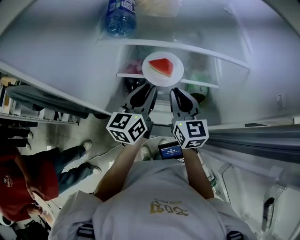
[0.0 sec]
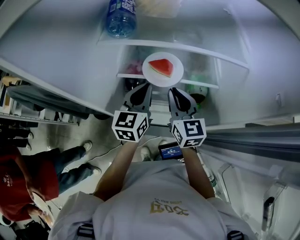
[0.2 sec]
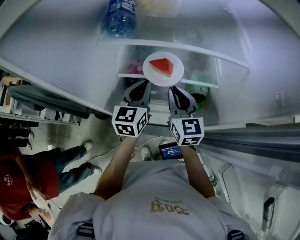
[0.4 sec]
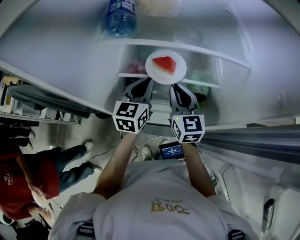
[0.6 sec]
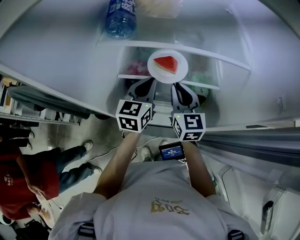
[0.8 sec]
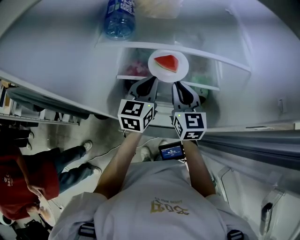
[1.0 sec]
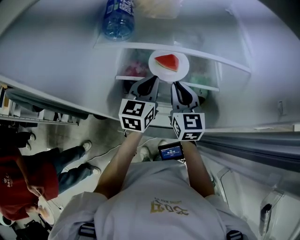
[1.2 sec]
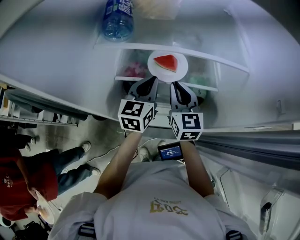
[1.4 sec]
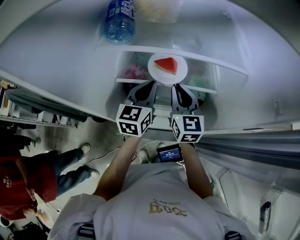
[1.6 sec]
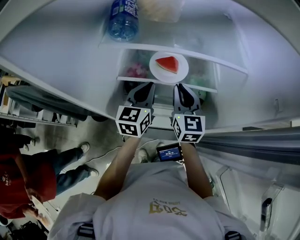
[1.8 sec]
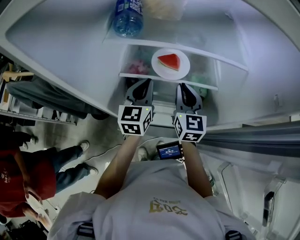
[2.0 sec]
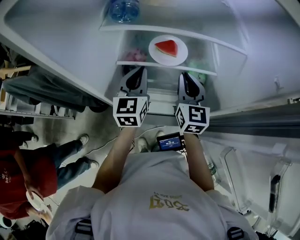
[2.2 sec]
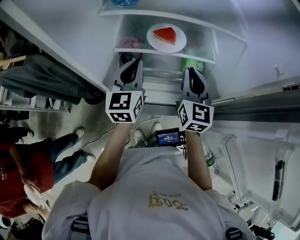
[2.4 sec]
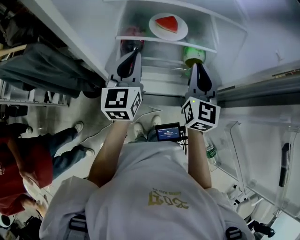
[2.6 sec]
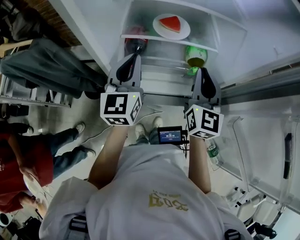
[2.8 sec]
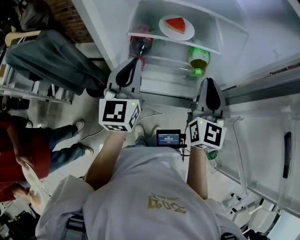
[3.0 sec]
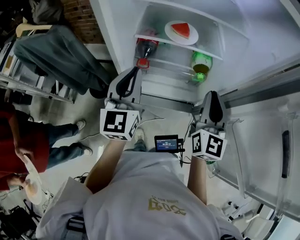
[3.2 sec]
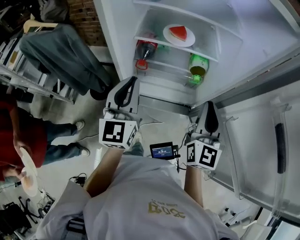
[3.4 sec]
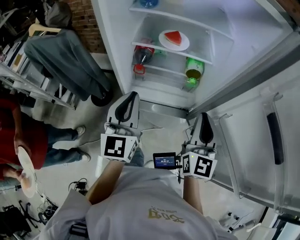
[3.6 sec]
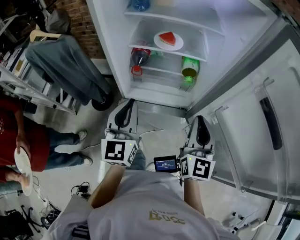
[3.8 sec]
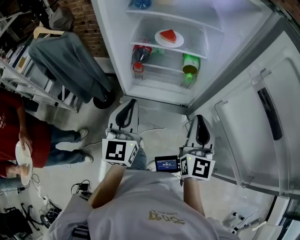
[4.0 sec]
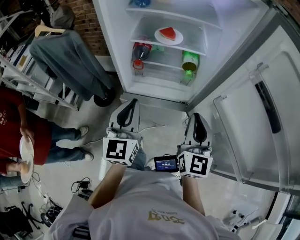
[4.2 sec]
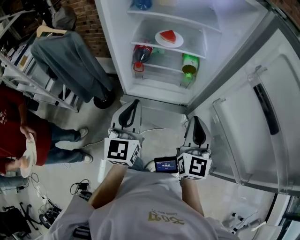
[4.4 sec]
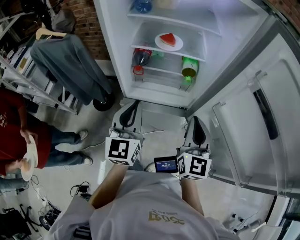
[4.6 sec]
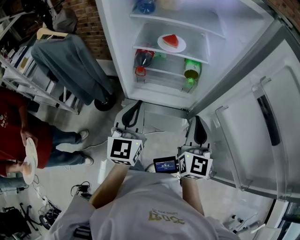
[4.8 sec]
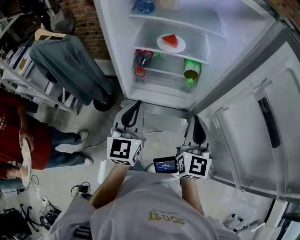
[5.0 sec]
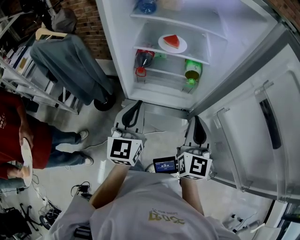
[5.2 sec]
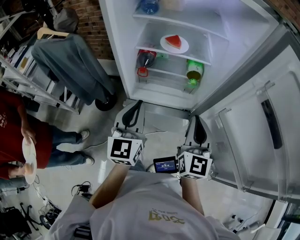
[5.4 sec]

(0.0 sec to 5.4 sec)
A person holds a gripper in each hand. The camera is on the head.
0.0 sec - 1.4 sec: The left gripper travels forward by roughly 5 cm, and closes its fingers.
1.4 sec - 2.8 sec: The left gripper is displaced backward and to the left by about 15 cm, while the right gripper travels backward, to the right and upward by roughly 15 cm.
2.8 sec - 4.0 sec: The grippers both shift backward by approximately 20 cm.
4.0 sec - 5.4 sec: The grippers move only a little.

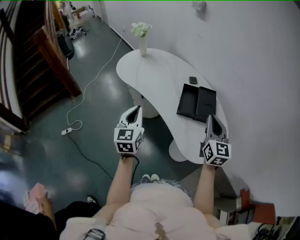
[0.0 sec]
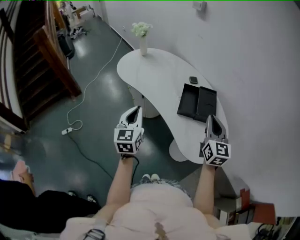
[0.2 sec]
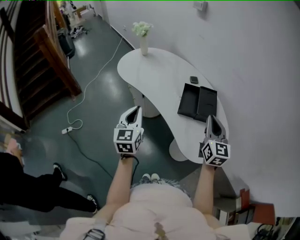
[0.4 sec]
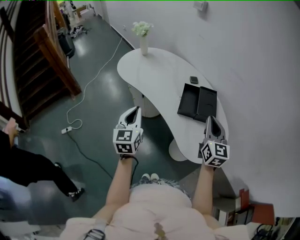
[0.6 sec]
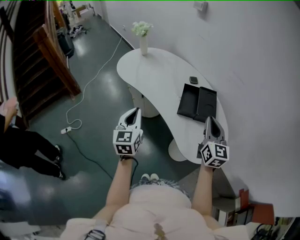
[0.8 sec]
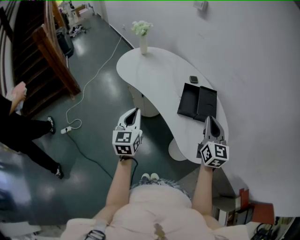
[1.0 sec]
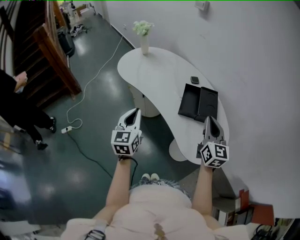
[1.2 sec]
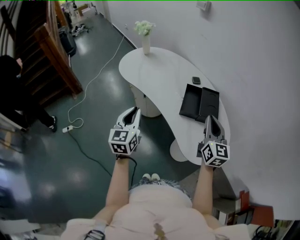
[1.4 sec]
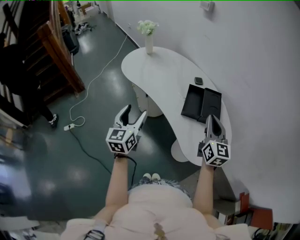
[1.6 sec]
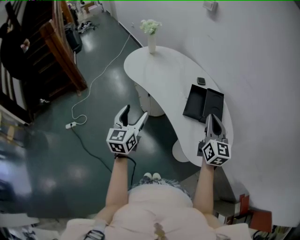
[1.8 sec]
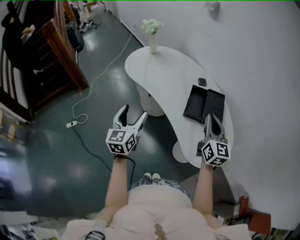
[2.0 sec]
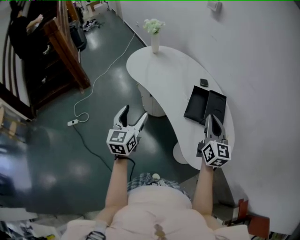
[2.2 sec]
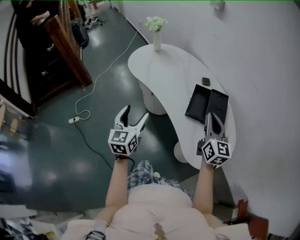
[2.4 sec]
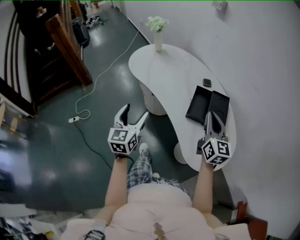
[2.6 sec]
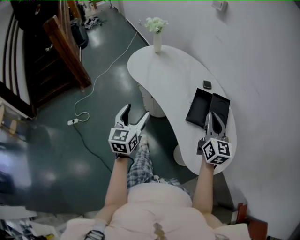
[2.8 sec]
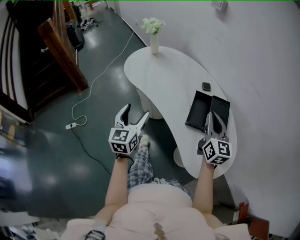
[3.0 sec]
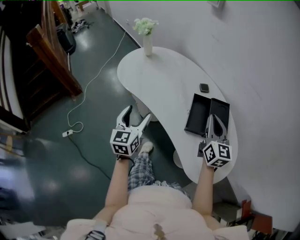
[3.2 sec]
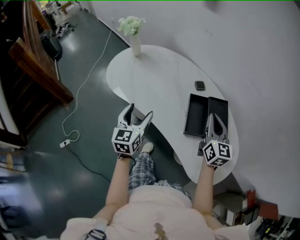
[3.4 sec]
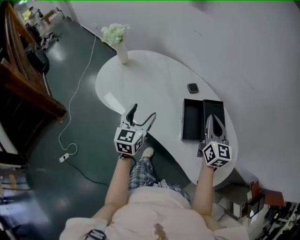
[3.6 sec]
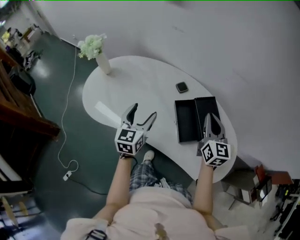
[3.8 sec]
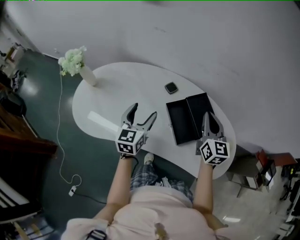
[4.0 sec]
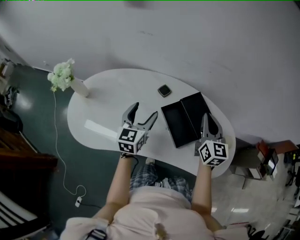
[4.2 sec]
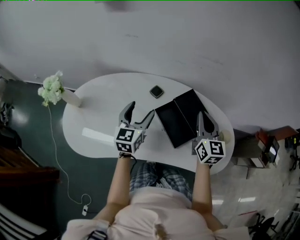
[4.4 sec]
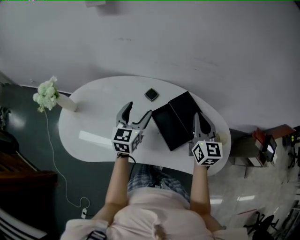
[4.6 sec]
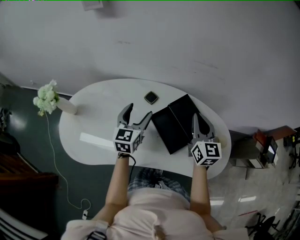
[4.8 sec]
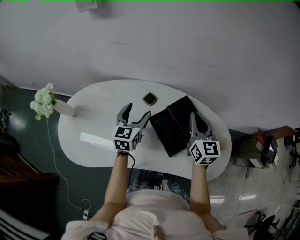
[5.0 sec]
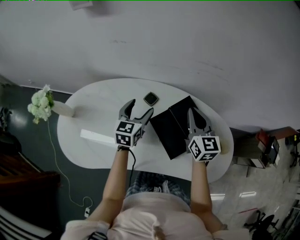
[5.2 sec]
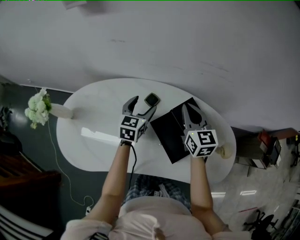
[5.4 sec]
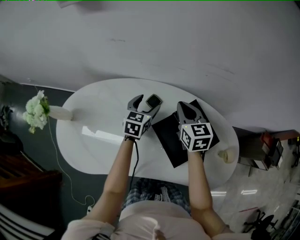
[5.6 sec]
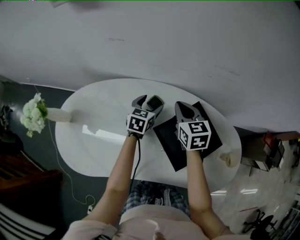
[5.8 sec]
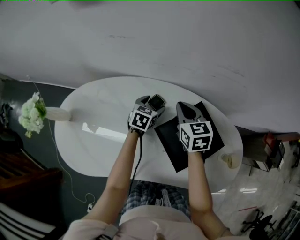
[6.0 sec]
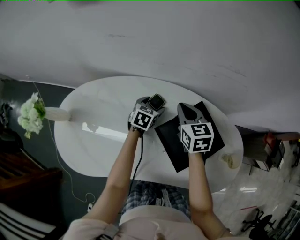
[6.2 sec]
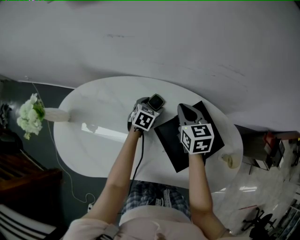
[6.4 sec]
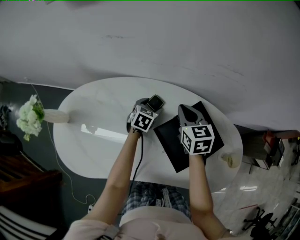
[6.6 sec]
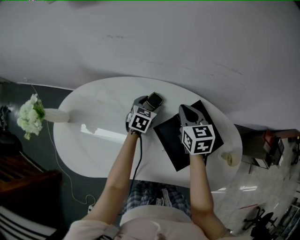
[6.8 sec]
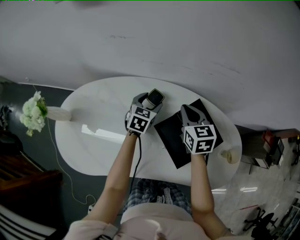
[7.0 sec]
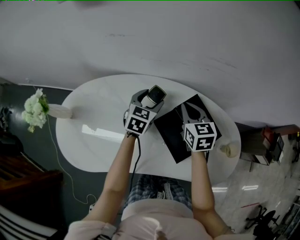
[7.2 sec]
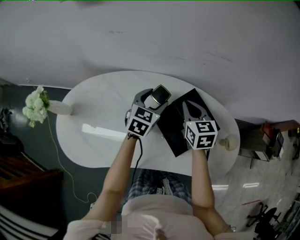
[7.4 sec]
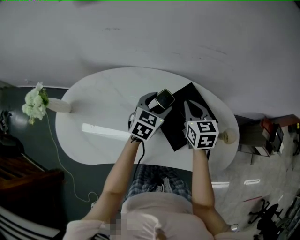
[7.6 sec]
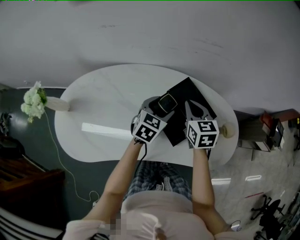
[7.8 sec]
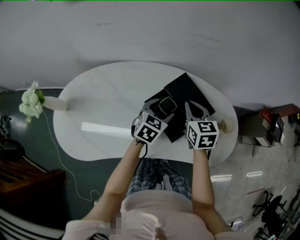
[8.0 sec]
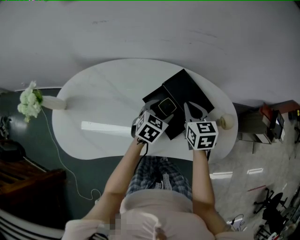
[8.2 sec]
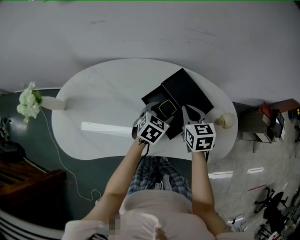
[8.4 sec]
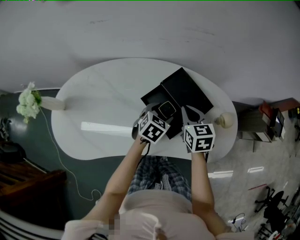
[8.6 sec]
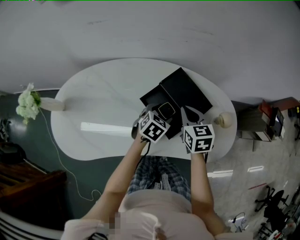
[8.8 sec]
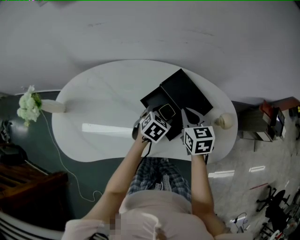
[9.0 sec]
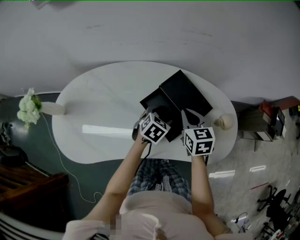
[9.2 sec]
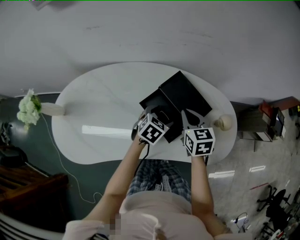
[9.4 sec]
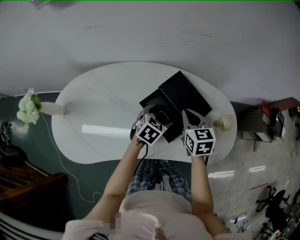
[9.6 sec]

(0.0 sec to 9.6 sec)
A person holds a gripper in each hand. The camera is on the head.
0.0 sec - 1.6 sec: The left gripper opens its fingers.
1.6 sec - 3.2 sec: The grippers both shift forward by approximately 15 cm.
3.2 sec - 4.8 sec: The left gripper moves roughly 35 cm, and swivels about 50 degrees. The right gripper moves roughly 15 cm, and turns by some 40 degrees.
4.8 sec - 6.4 sec: The right gripper heads forward, downward and to the left, covering approximately 20 cm, and changes its angle by about 30 degrees. The left gripper goes approximately 25 cm downward and forward, and tilts its fingers roughly 30 degrees downward.
6.4 sec - 8.0 sec: The left gripper travels backward, to the right and upward by approximately 20 cm. Meanwhile the right gripper heads backward and to the right, covering about 15 cm.
8.0 sec - 9.6 sec: The left gripper ends up some 5 cm from where it was.

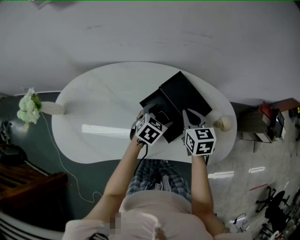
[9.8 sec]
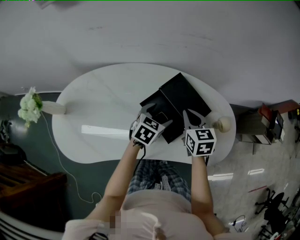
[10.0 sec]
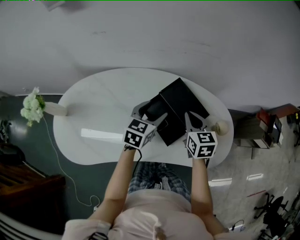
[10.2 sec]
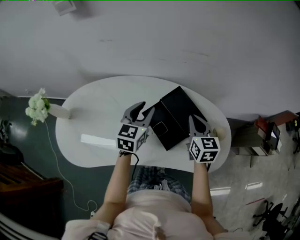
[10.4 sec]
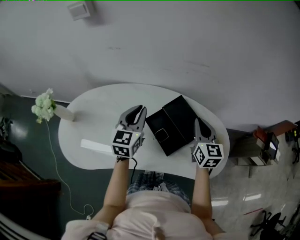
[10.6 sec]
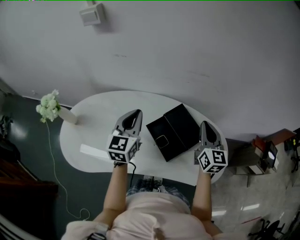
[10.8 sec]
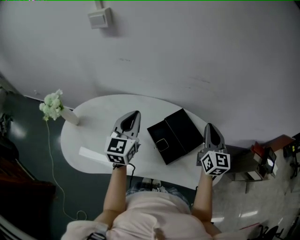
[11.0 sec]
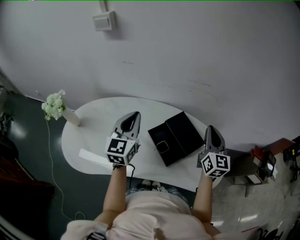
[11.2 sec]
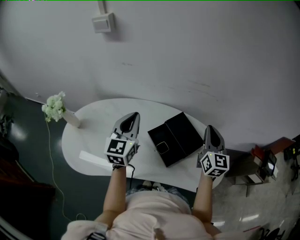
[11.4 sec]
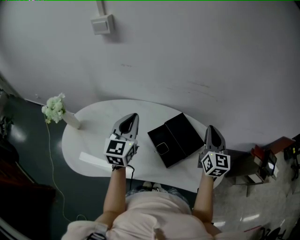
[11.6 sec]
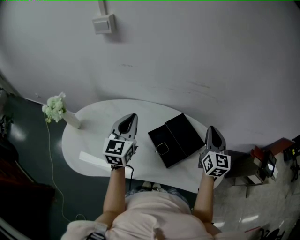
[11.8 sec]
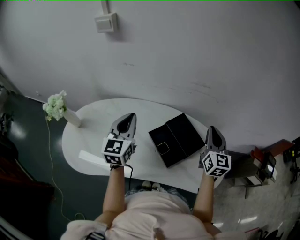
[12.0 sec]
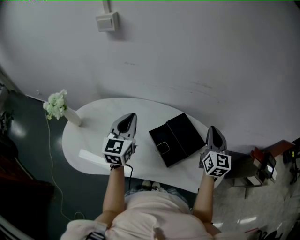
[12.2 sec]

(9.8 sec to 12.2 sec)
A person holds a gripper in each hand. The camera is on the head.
9.8 sec - 11.0 sec: The left gripper is displaced upward and to the left by roughly 30 cm, angles its fingers upward, by about 40 degrees, and closes up; the right gripper goes approximately 20 cm upward and to the right, and tilts its fingers some 30 degrees upward.
11.0 sec - 12.2 sec: The grippers make only small movements.

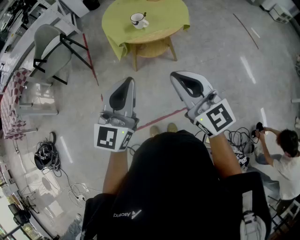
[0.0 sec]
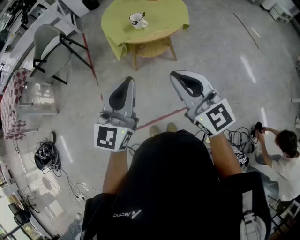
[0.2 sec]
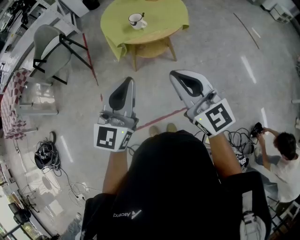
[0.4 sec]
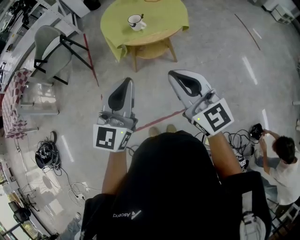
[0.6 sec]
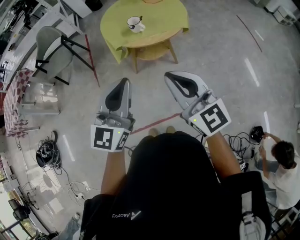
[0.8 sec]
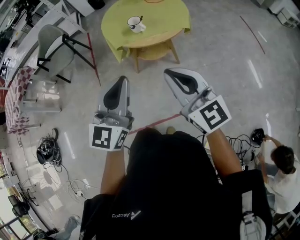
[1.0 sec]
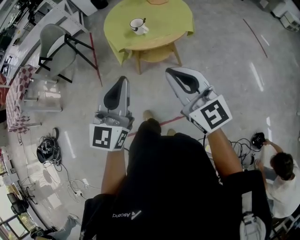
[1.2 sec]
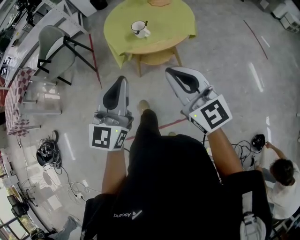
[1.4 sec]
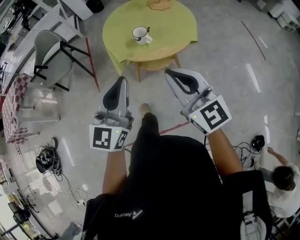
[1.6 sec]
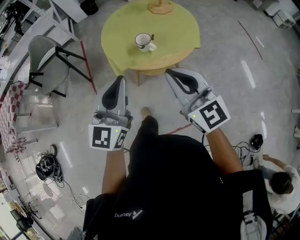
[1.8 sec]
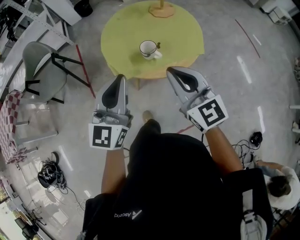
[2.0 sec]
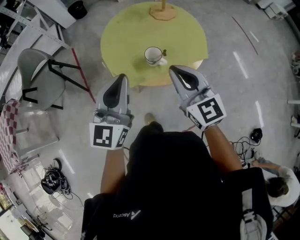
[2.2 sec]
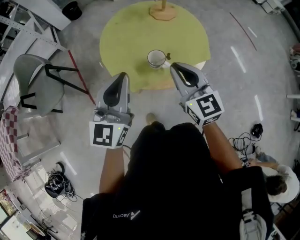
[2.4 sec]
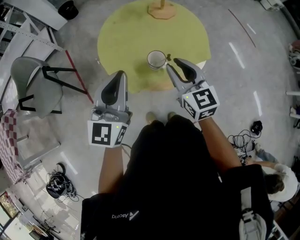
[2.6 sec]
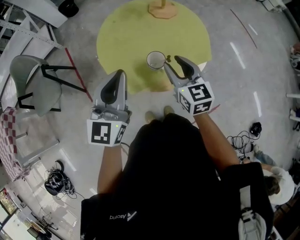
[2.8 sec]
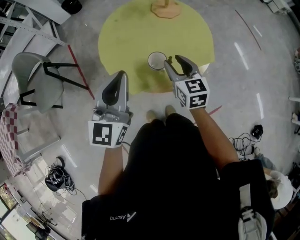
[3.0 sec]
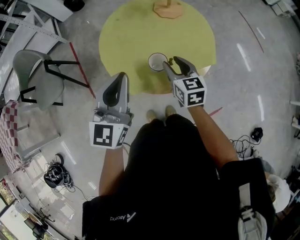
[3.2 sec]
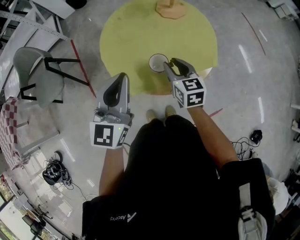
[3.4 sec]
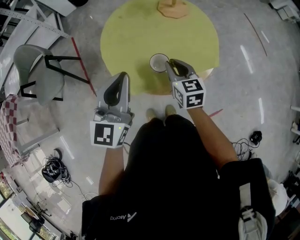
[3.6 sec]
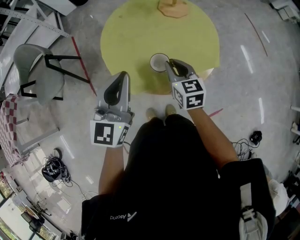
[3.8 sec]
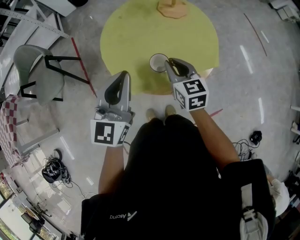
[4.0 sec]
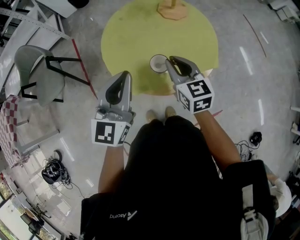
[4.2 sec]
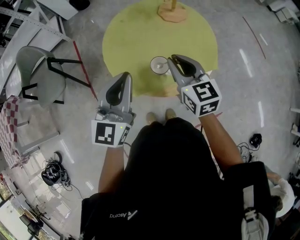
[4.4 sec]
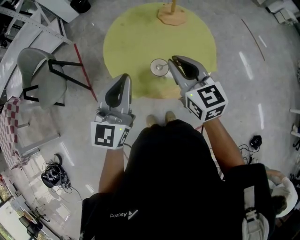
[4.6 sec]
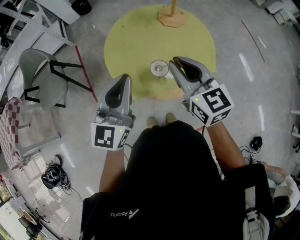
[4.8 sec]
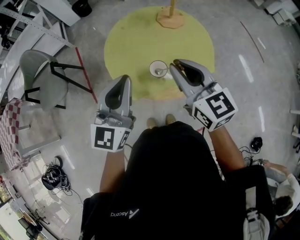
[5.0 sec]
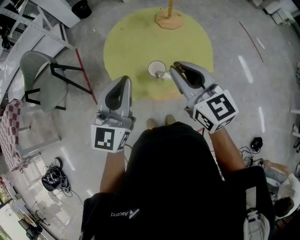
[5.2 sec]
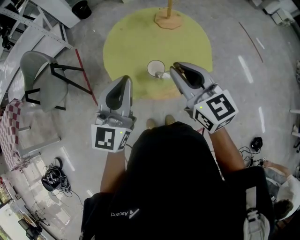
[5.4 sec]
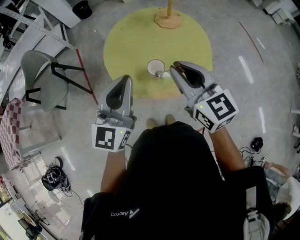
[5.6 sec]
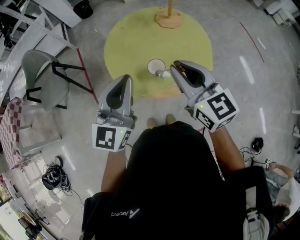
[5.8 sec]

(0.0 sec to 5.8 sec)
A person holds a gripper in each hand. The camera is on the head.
0.0 sec - 1.4 sec: Both grippers travel together forward, about 10 cm.
1.4 sec - 2.8 sec: Both grippers are carried forward, about 40 cm. The right gripper turns by about 30 degrees, and opens up.
2.8 sec - 4.4 sec: The right gripper reaches roughly 10 cm downward, then returns, and closes its fingers.
4.4 sec - 5.8 sec: The left gripper changes place by some 5 cm, while the right gripper shifts some 10 cm upward and backward.
